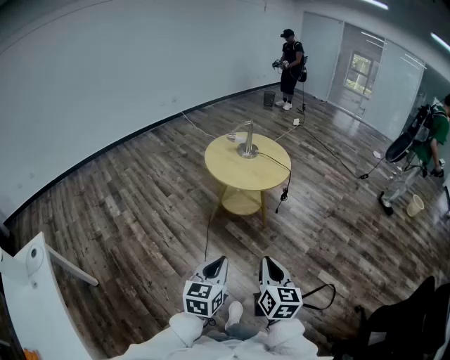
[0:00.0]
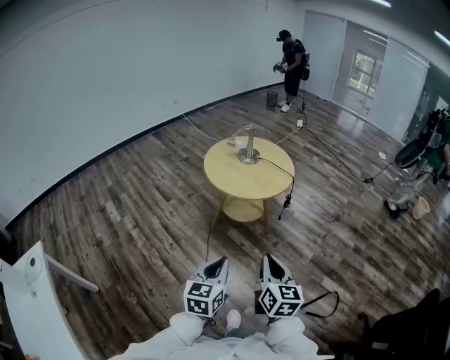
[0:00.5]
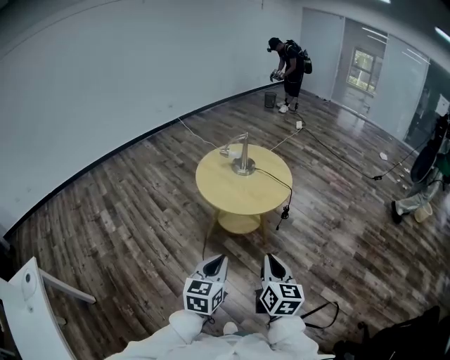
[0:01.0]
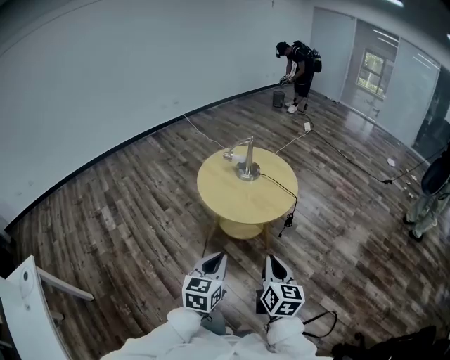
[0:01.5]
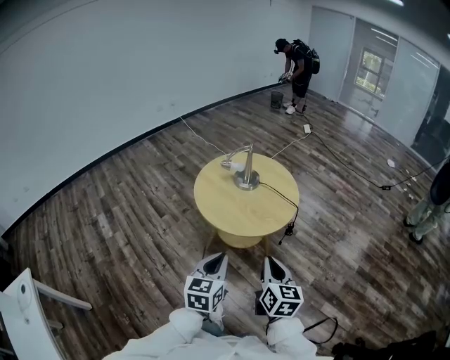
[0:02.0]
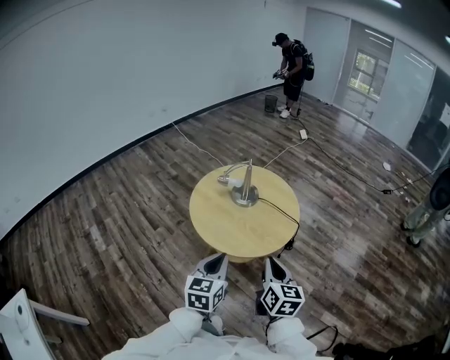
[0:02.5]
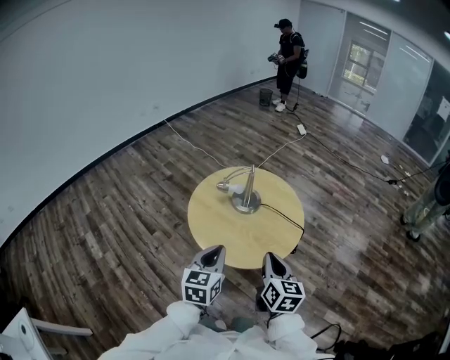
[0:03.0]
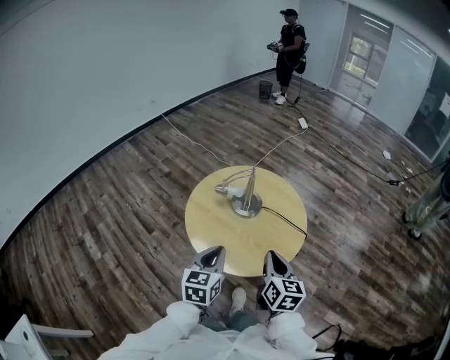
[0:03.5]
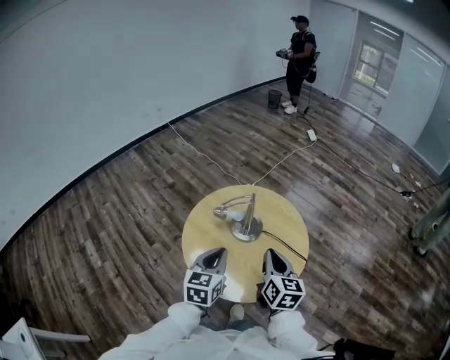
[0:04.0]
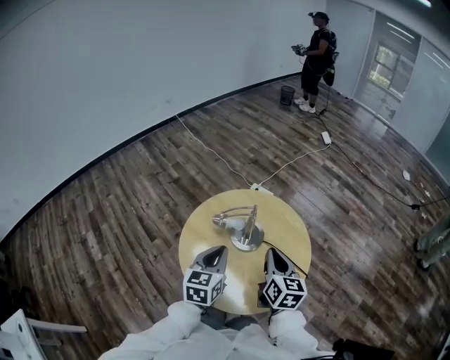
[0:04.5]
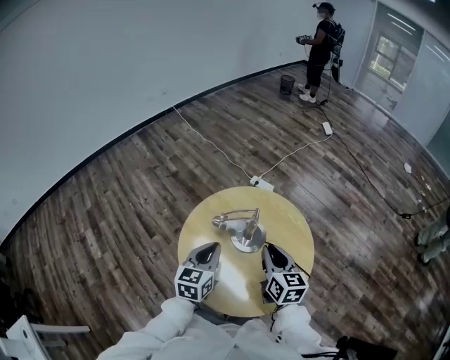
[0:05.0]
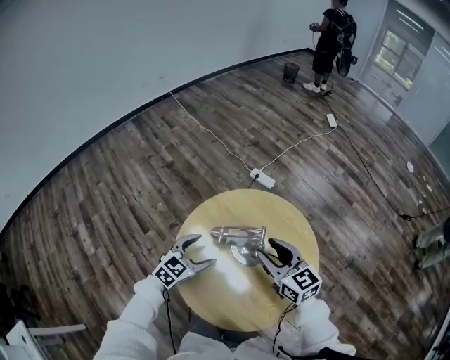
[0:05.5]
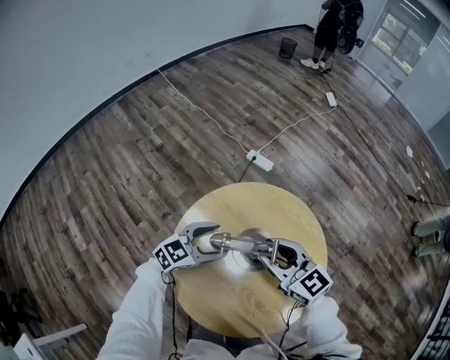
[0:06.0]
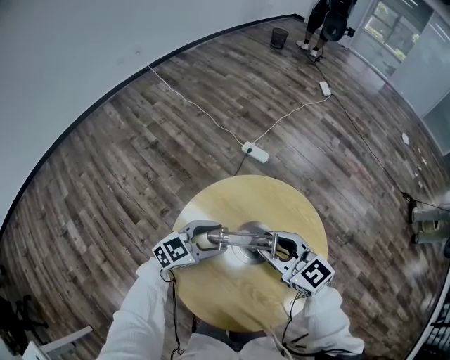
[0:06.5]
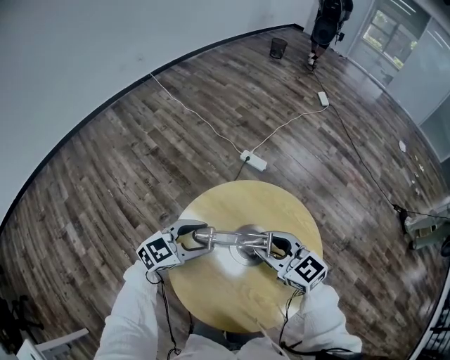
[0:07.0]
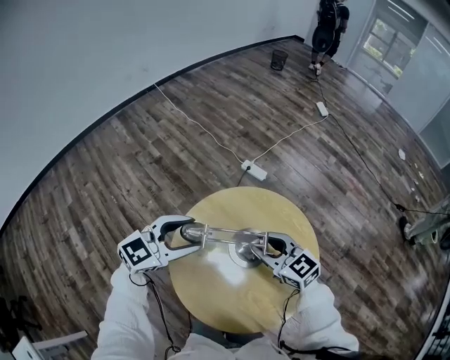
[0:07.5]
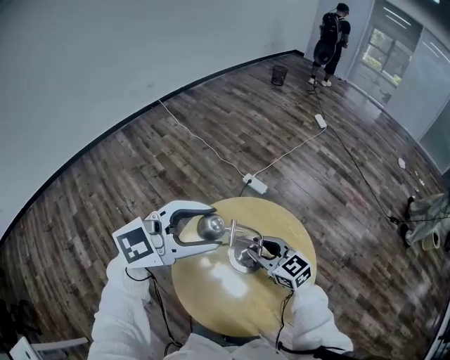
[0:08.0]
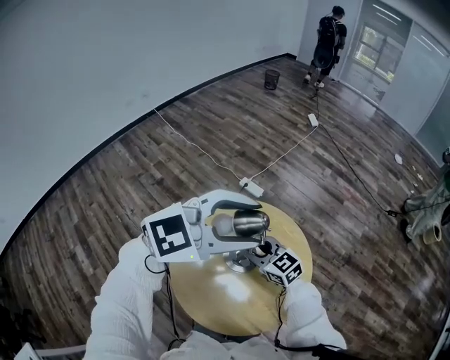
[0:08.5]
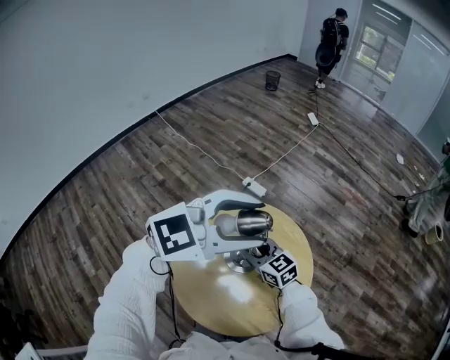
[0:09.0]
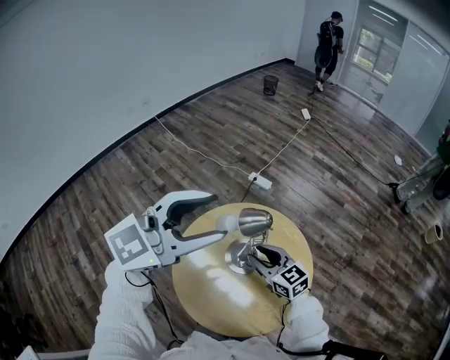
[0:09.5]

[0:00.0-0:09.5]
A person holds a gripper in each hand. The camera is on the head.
0:00.0 to 0:02.0: Both grippers travel together forward, approximately 35 cm.
0:02.0 to 0:04.0: Both grippers travel together forward, approximately 40 cm.
0:04.0 to 0:05.5: The right gripper is displaced forward by about 20 cm, changes its angle by roughly 40 degrees, and opens its fingers; the left gripper travels forward and downward by approximately 25 cm, rotates some 30 degrees, and opens its fingers.
0:05.5 to 0:07.5: The right gripper shifts by about 5 cm, while the left gripper shifts roughly 15 cm upward, and changes its angle by roughly 20 degrees.
0:07.5 to 0:09.5: The left gripper is displaced upward by roughly 25 cm, and turns by about 20 degrees. Meanwhile the right gripper changes place by about 5 cm.

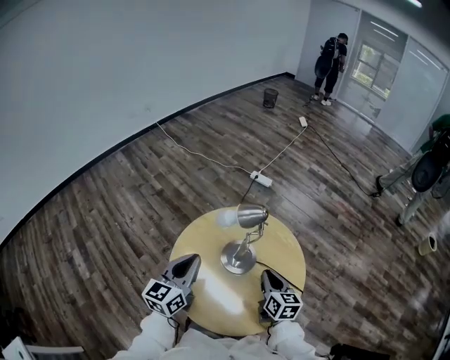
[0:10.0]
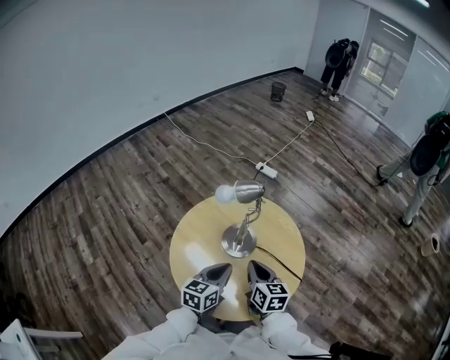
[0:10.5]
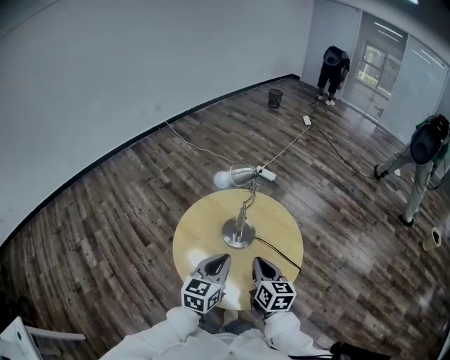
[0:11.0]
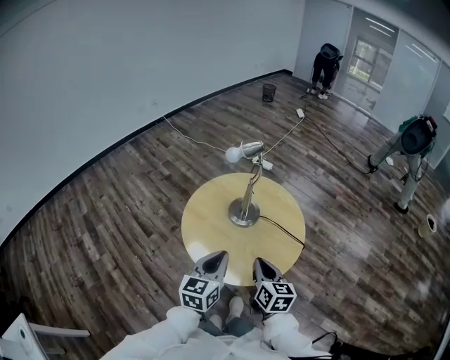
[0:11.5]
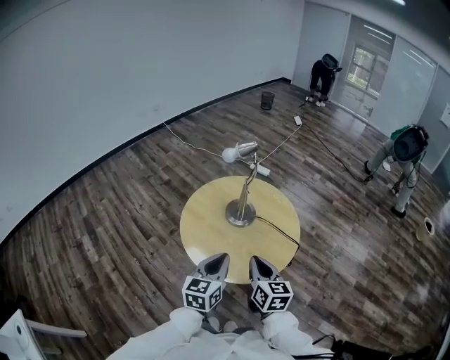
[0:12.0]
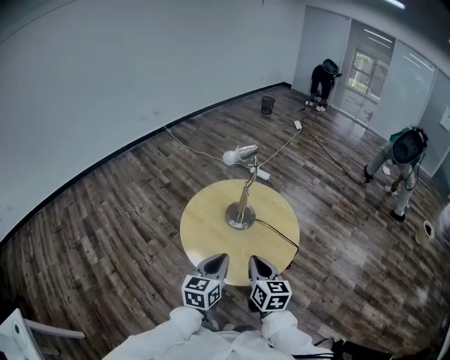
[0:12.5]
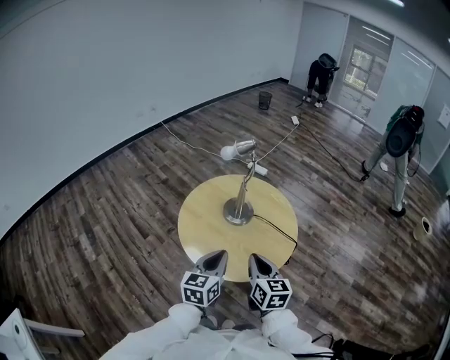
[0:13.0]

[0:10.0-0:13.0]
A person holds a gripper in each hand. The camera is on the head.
0:10.0 to 0:11.5: Both grippers move backward, approximately 20 cm.
0:11.5 to 0:13.0: The grippers make only small movements.

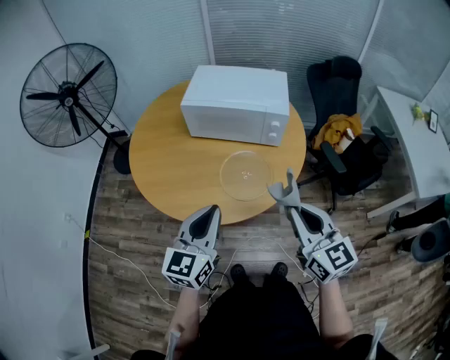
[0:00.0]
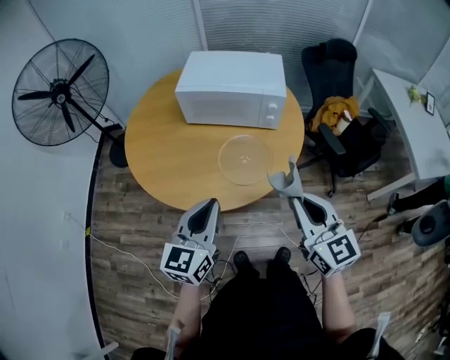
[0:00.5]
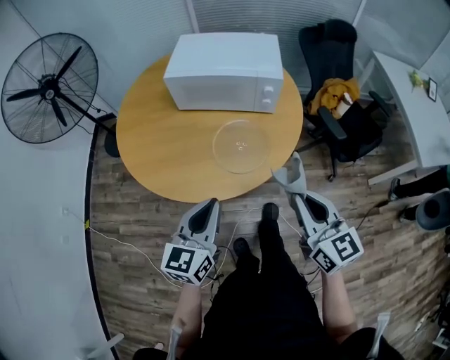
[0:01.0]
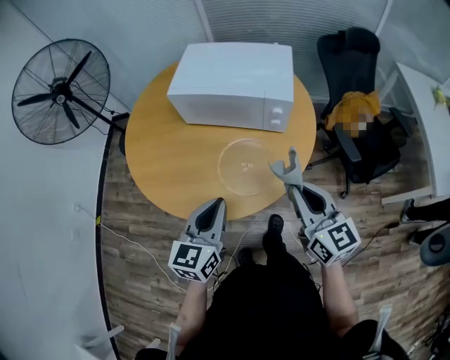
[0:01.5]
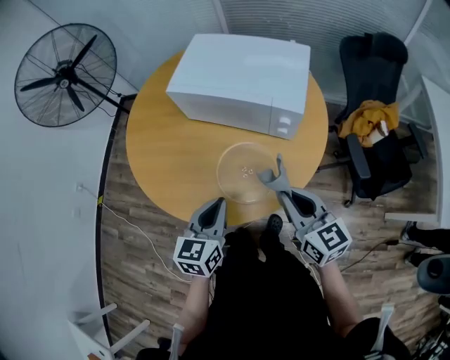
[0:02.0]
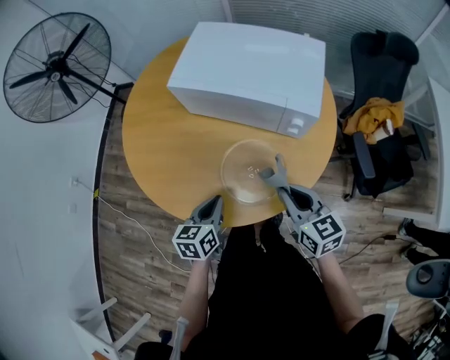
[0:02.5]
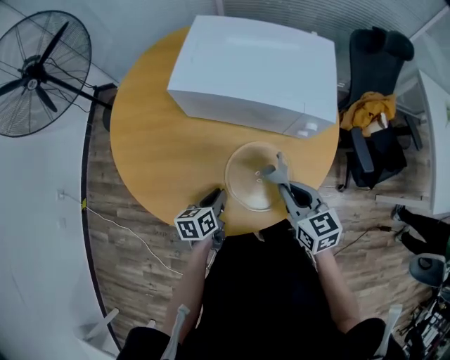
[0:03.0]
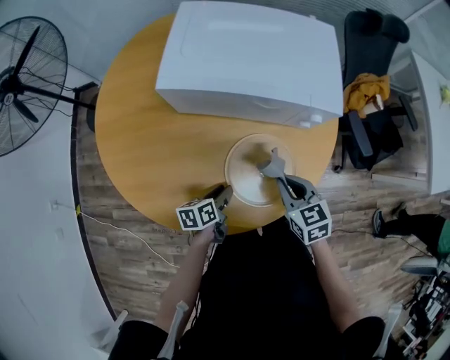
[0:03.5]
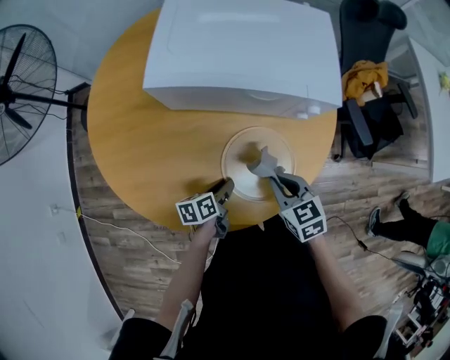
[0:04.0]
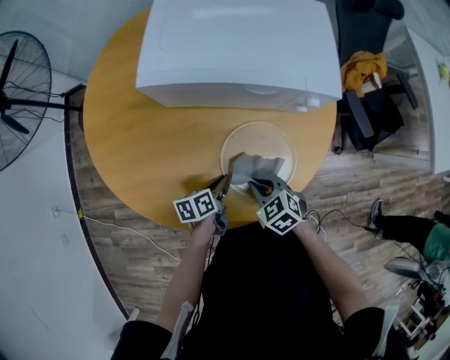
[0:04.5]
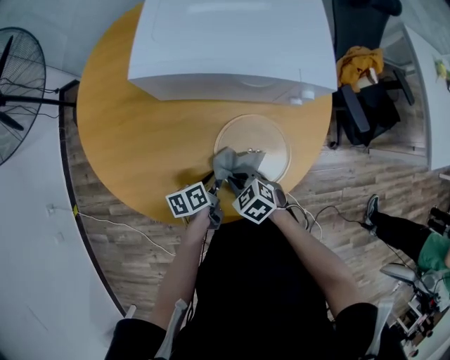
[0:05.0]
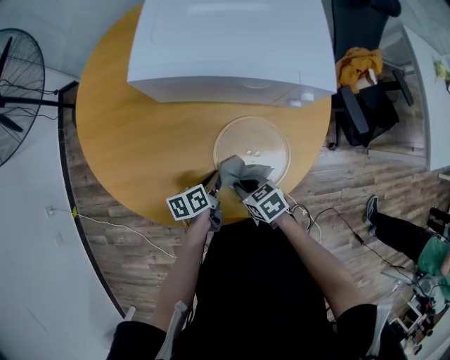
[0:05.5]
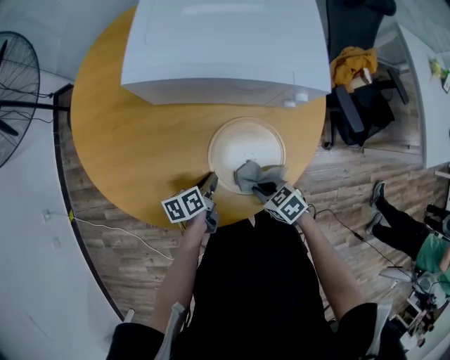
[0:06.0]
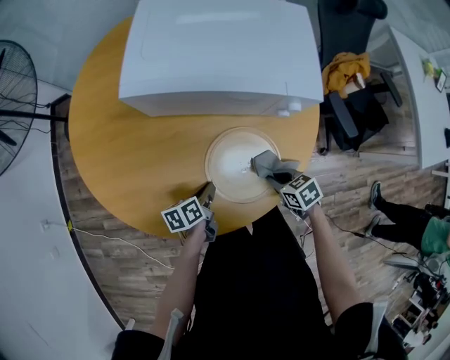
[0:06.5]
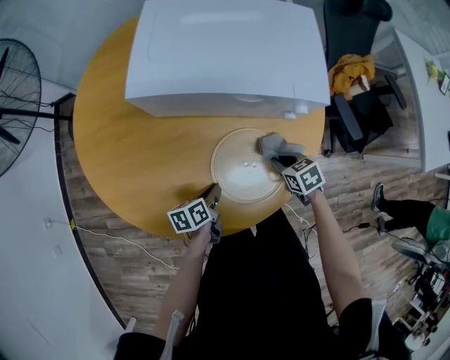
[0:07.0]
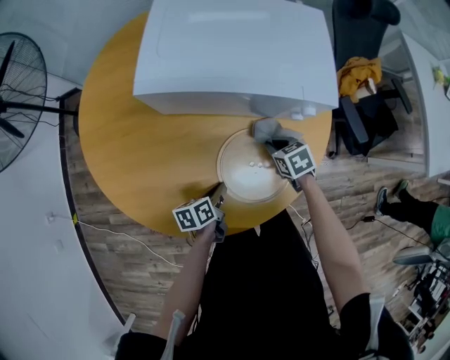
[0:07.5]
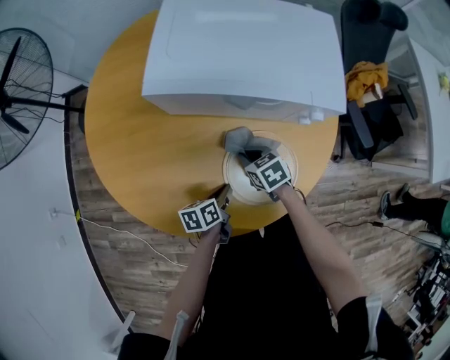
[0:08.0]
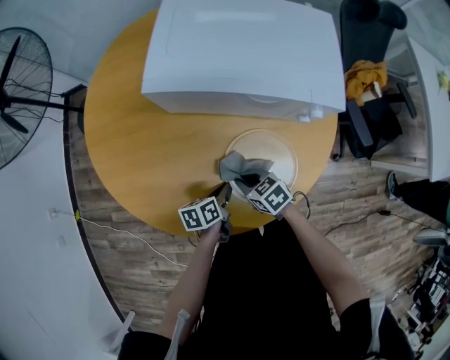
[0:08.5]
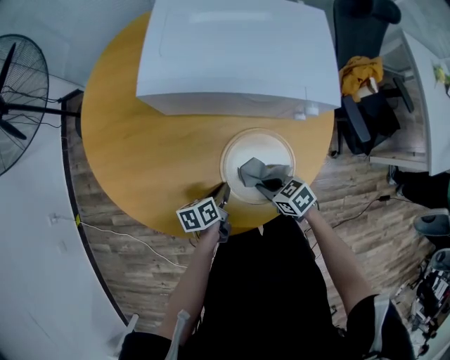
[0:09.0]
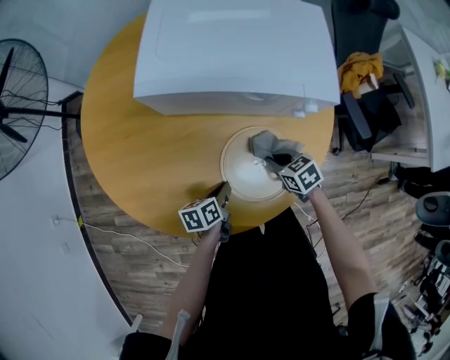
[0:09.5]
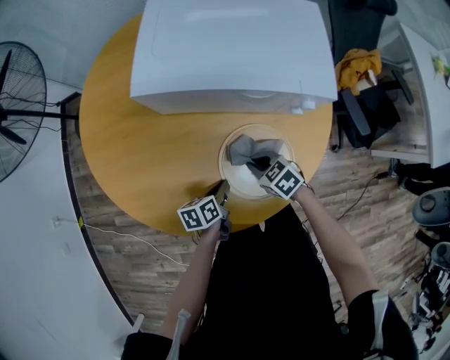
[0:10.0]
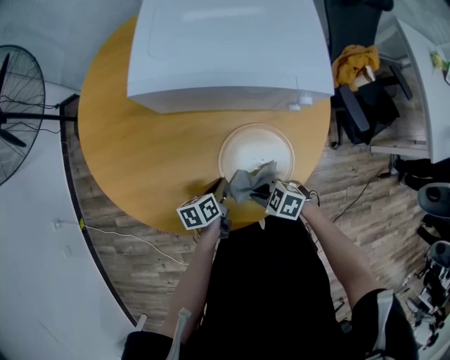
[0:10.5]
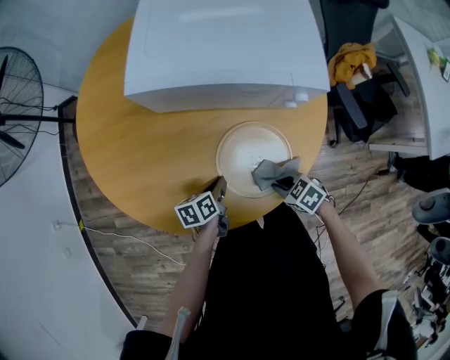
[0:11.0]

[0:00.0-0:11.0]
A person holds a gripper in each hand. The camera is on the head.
0:00.0 to 0:02.0: The right gripper moves forward and downward, some 20 cm. The left gripper goes roughly 20 cm forward, downward and to the right, and swivels about 20 degrees.
0:02.0 to 0:03.5: The left gripper heads downward, covering some 25 cm, turns by some 50 degrees, and opens its fingers. Meanwhile the right gripper heads downward, to the left and forward, covering roughly 20 cm, and changes its angle by about 30 degrees.
0:03.5 to 0:05.5: The right gripper goes approximately 15 cm downward, to the left and backward, and swivels approximately 30 degrees.
0:05.5 to 0:07.5: The right gripper shifts some 20 cm forward and to the right.
0:07.5 to 0:09.0: The right gripper goes roughly 15 cm backward and to the left, and rotates roughly 20 degrees.
0:09.0 to 0:11.0: The right gripper ends up roughly 5 cm from where it was.

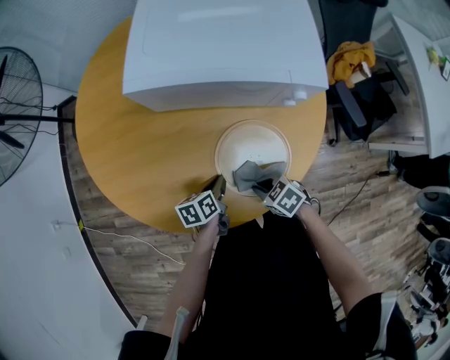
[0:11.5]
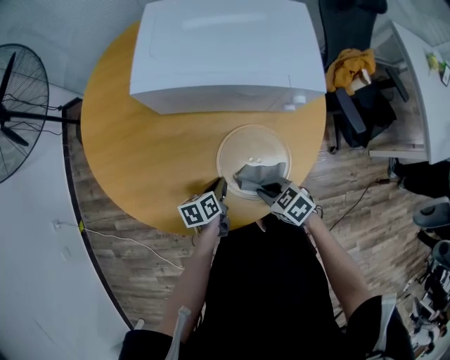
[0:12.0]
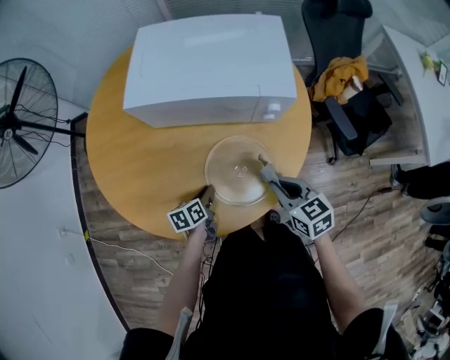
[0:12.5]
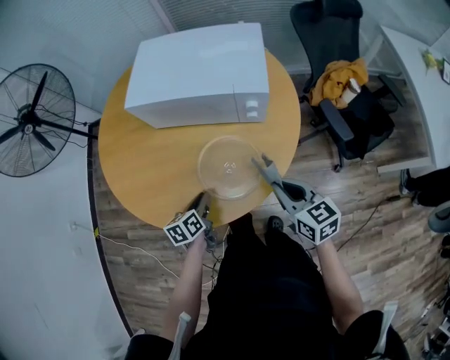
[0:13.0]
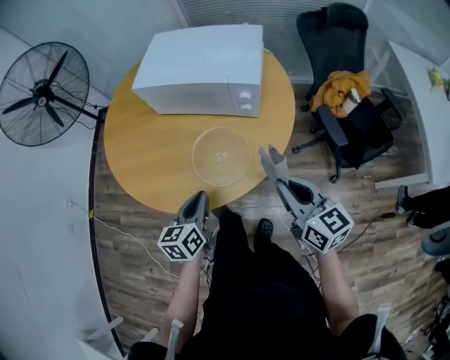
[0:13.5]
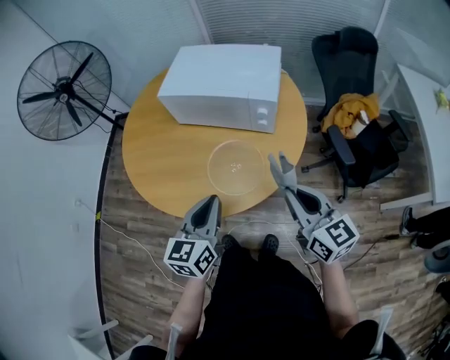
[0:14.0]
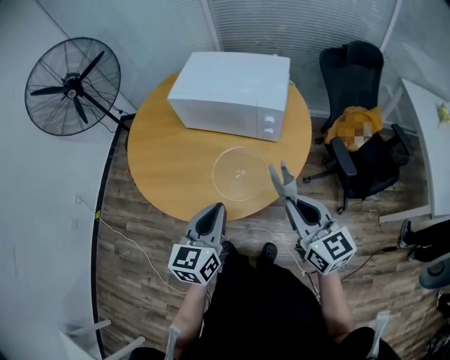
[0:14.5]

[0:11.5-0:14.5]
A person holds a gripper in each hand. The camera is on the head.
0:11.5 to 0:13.0: The right gripper moves upward and to the right, about 25 cm, and tilts its fingers roughly 30 degrees upward; the left gripper is displaced upward and backward by approximately 10 cm.
0:13.0 to 0:14.5: The left gripper moves upward and backward, roughly 25 cm, and swivels some 40 degrees. Meanwhile the right gripper shifts approximately 15 cm upward and backward, and swivels about 20 degrees.
